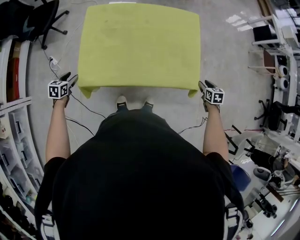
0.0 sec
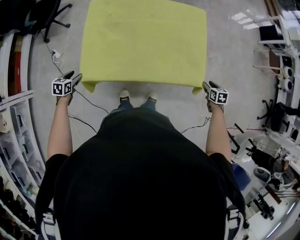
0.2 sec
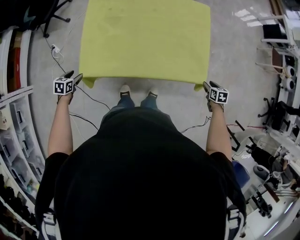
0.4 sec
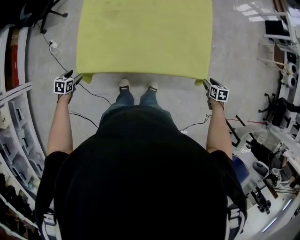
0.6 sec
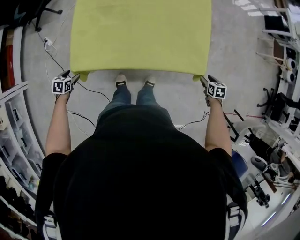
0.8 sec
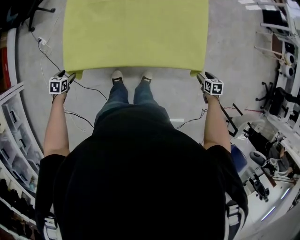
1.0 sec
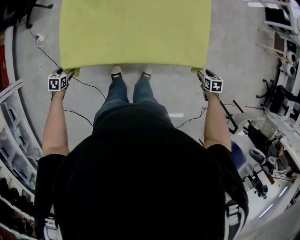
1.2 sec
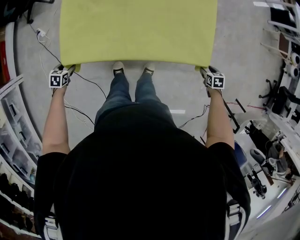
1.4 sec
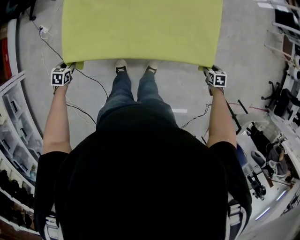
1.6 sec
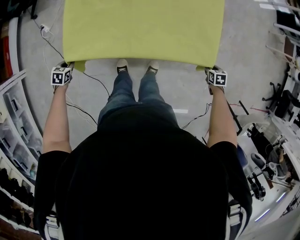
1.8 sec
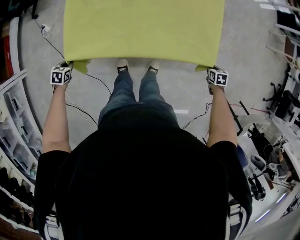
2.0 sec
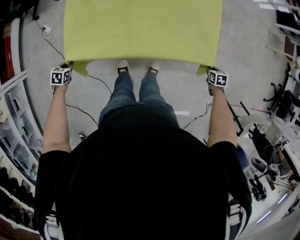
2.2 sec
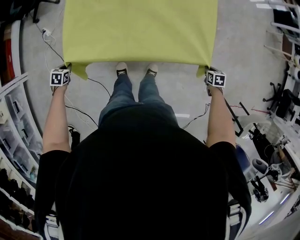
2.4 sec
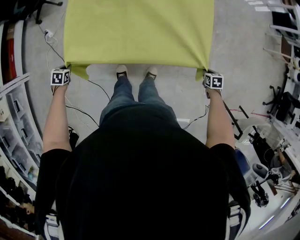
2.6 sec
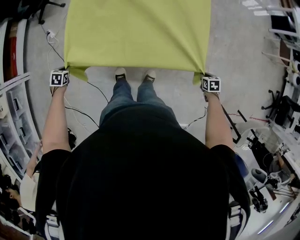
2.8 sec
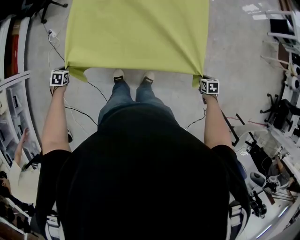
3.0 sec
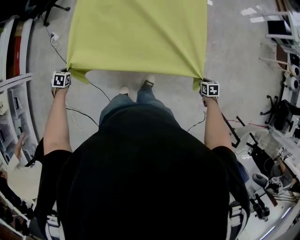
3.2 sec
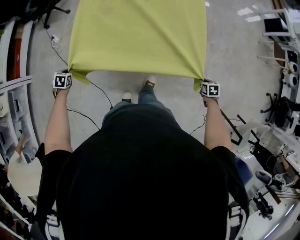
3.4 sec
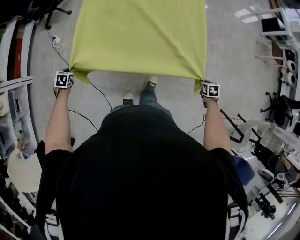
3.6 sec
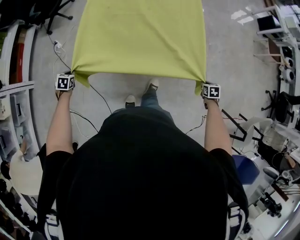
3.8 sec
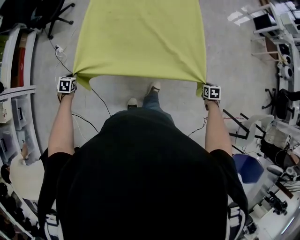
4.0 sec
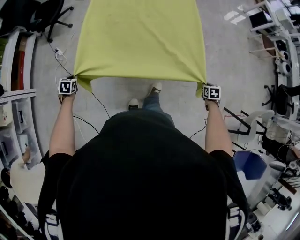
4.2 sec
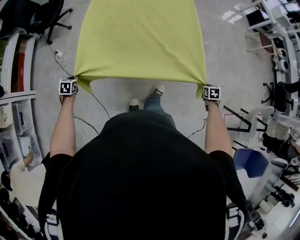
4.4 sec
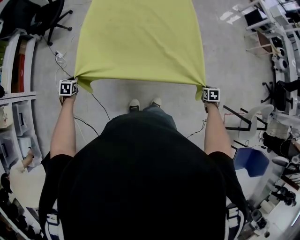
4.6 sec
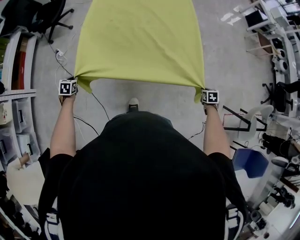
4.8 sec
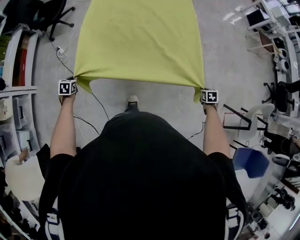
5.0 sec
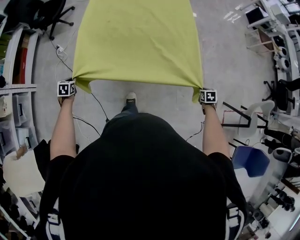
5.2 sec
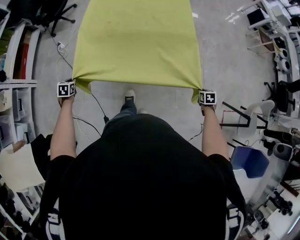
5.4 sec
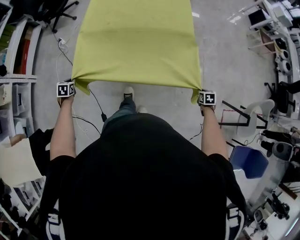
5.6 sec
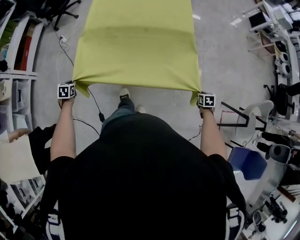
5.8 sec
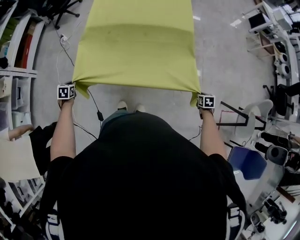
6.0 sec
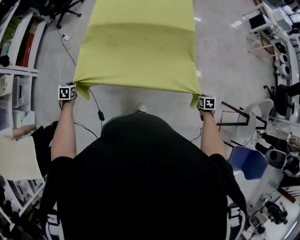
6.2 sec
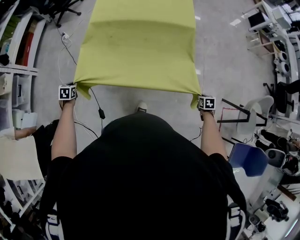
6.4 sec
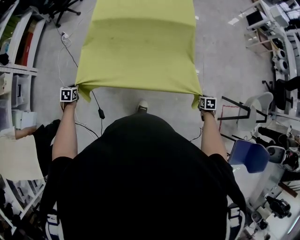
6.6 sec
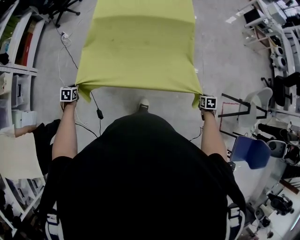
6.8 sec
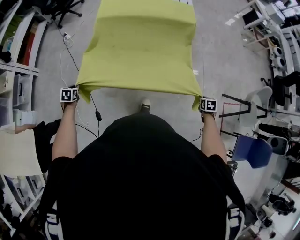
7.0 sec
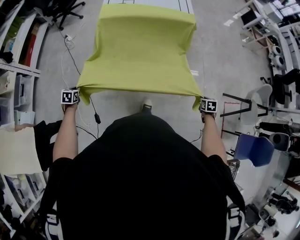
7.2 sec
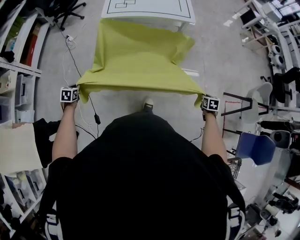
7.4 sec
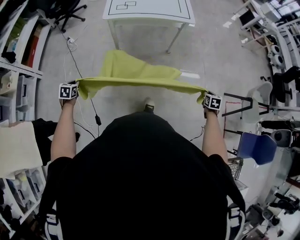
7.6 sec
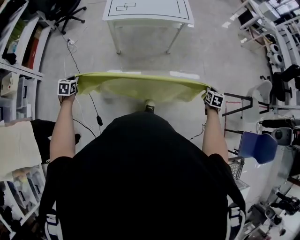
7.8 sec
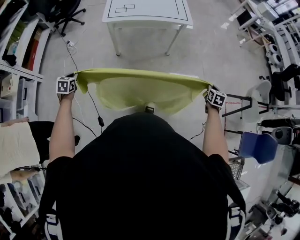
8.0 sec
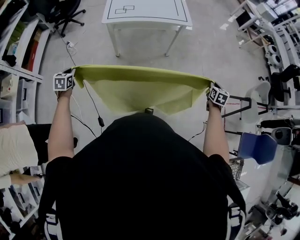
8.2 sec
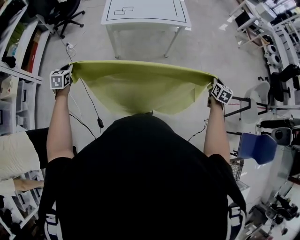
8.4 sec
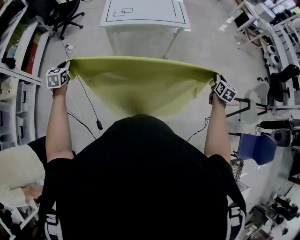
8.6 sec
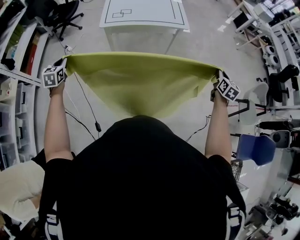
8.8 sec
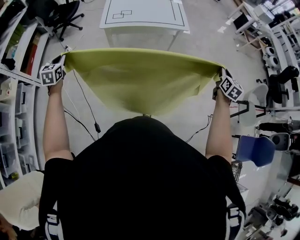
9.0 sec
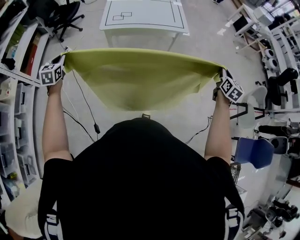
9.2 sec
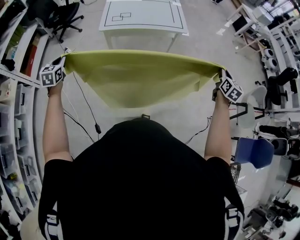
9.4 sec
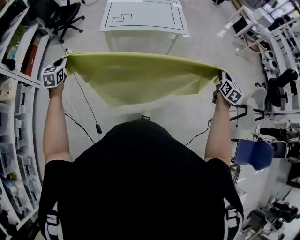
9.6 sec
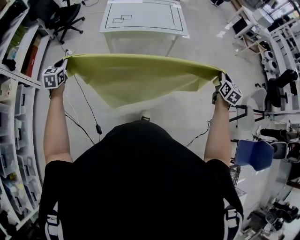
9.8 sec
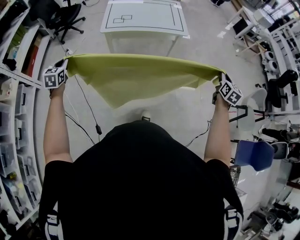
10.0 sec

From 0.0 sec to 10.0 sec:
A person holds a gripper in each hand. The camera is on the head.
From 0.0 sec to 1.4 sec: Both grippers move downward, about 20 cm.
From 1.4 sec to 2.8 sec: The left gripper moves roughly 10 cm, and closes up; the right gripper moves about 5 cm, and closes.
From 2.8 sec to 4.2 sec: The left gripper moves roughly 25 cm, while the right gripper changes place by about 30 cm.
From 4.2 sec to 5.8 sec: Both grippers move backward, some 35 cm.
From 5.8 sec to 7.2 sec: Both grippers travel together backward, about 30 cm.
From 7.2 sec to 8.6 sec: Both grippers travel together upward, roughly 25 cm. The left gripper changes its angle by some 30 degrees, while the right gripper points its fingers some 40 degrees further upward.
From 8.6 sec to 10.0 sec: Both grippers travel together upward, about 5 cm.

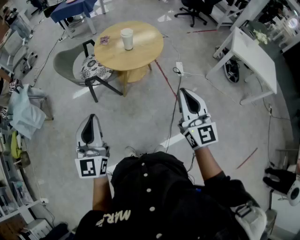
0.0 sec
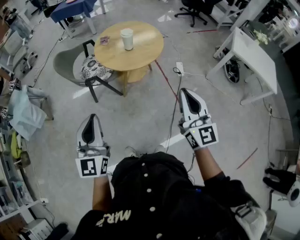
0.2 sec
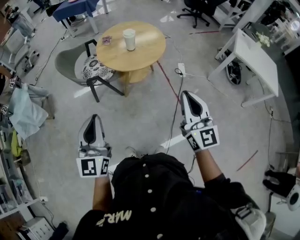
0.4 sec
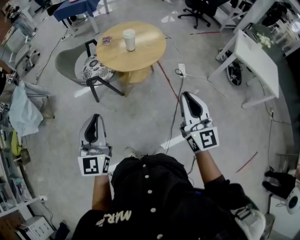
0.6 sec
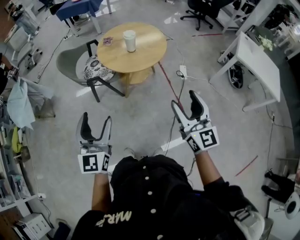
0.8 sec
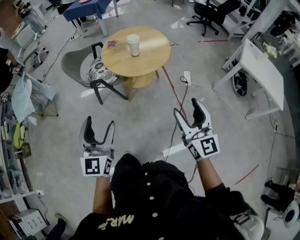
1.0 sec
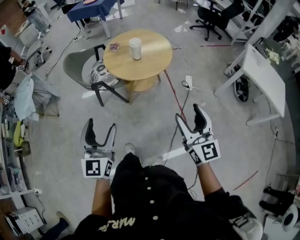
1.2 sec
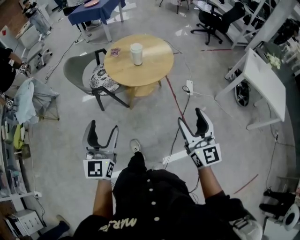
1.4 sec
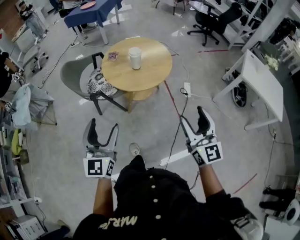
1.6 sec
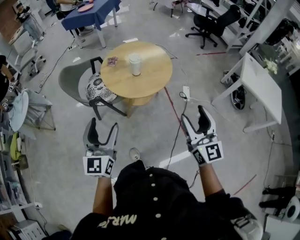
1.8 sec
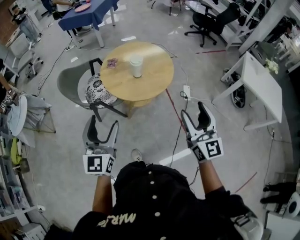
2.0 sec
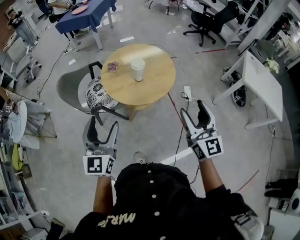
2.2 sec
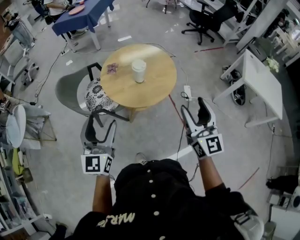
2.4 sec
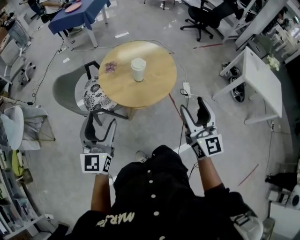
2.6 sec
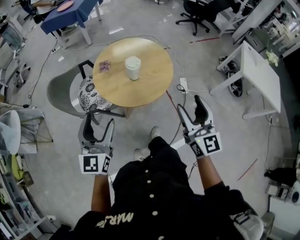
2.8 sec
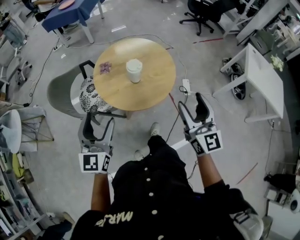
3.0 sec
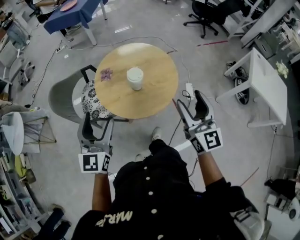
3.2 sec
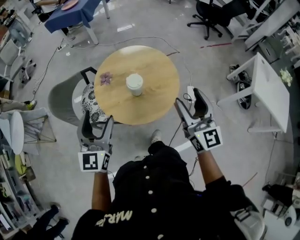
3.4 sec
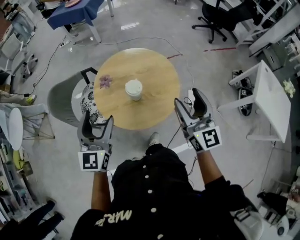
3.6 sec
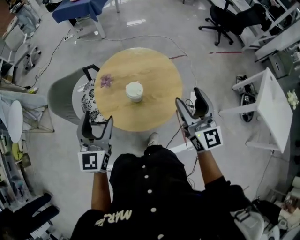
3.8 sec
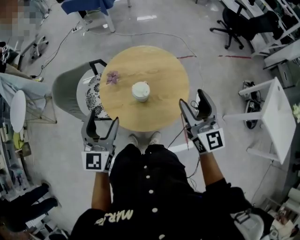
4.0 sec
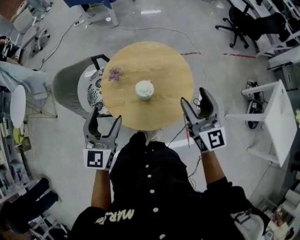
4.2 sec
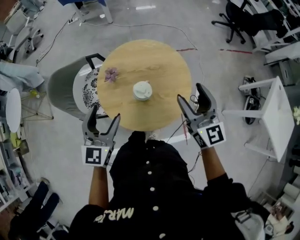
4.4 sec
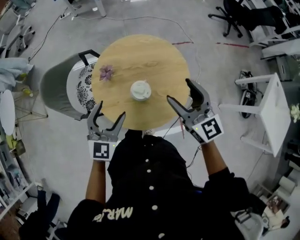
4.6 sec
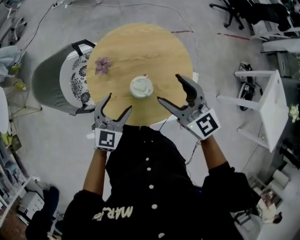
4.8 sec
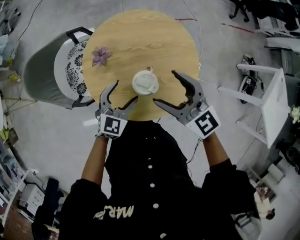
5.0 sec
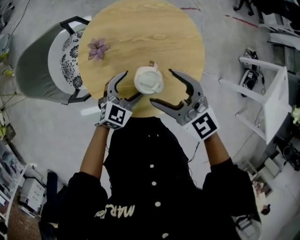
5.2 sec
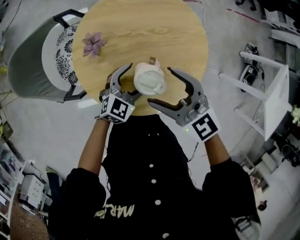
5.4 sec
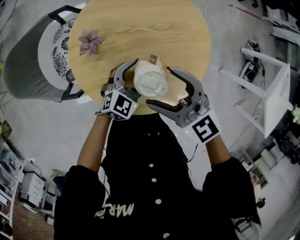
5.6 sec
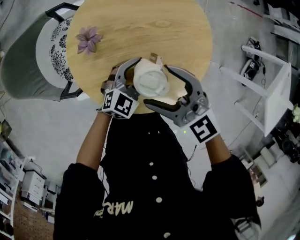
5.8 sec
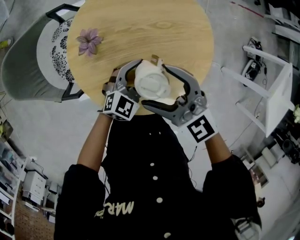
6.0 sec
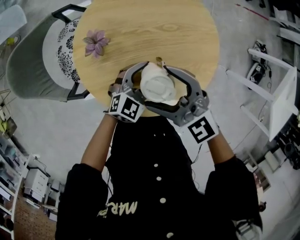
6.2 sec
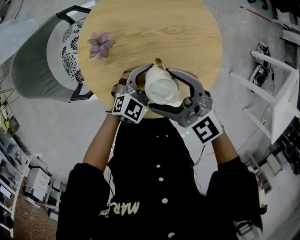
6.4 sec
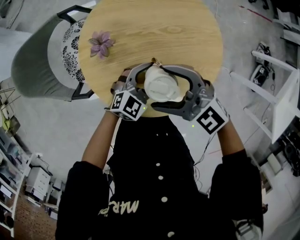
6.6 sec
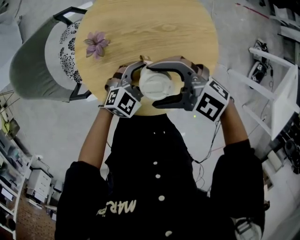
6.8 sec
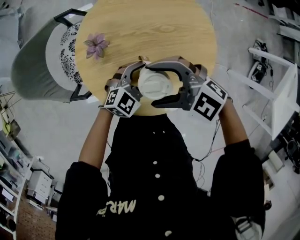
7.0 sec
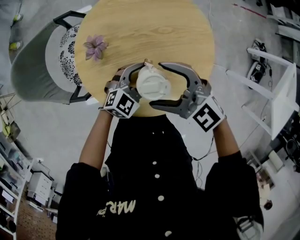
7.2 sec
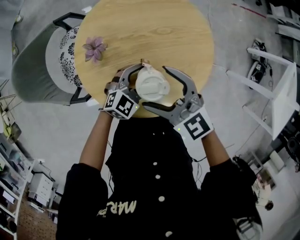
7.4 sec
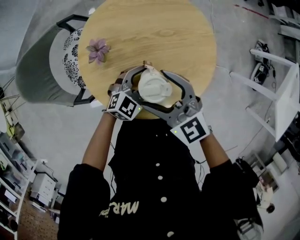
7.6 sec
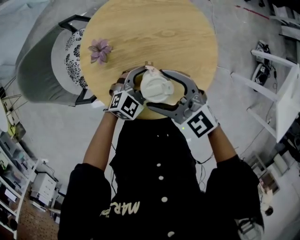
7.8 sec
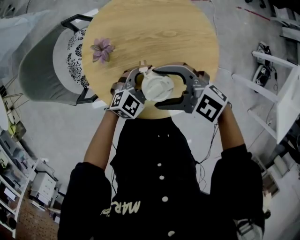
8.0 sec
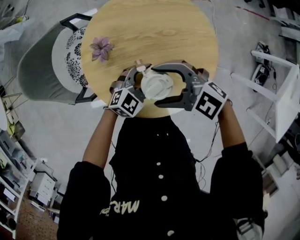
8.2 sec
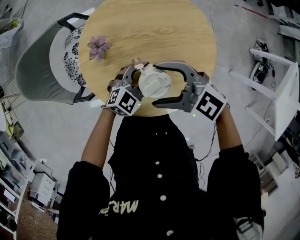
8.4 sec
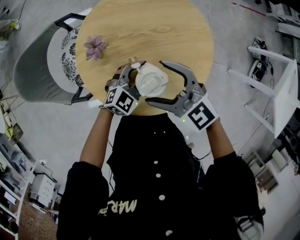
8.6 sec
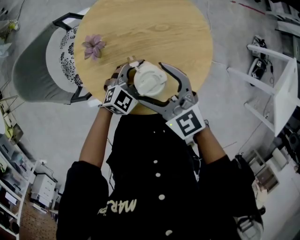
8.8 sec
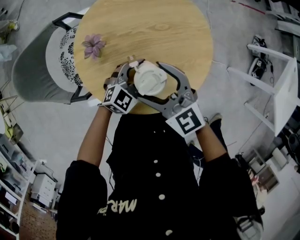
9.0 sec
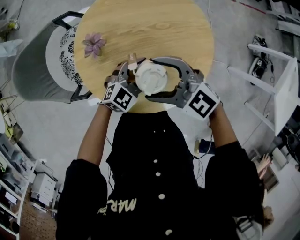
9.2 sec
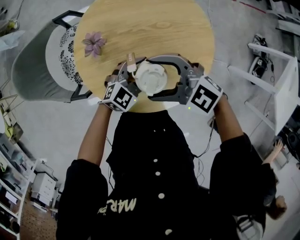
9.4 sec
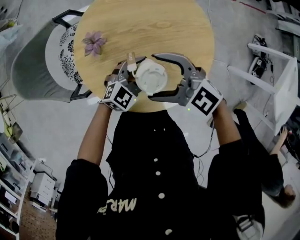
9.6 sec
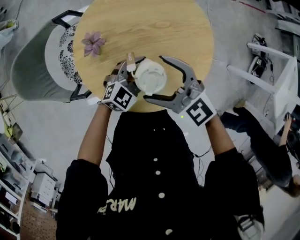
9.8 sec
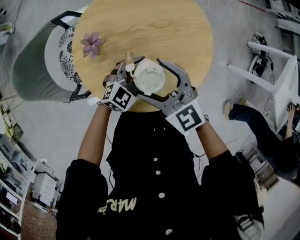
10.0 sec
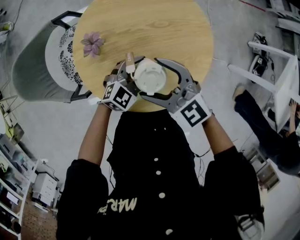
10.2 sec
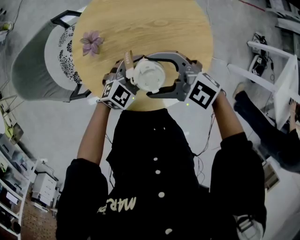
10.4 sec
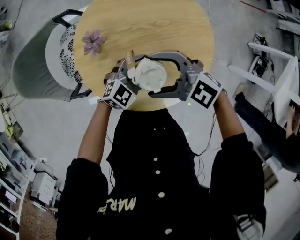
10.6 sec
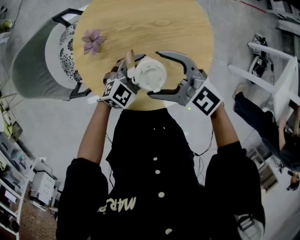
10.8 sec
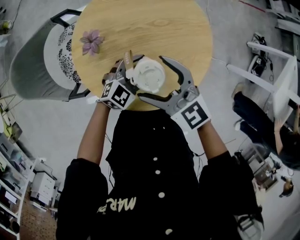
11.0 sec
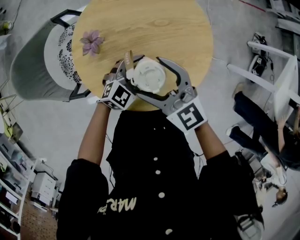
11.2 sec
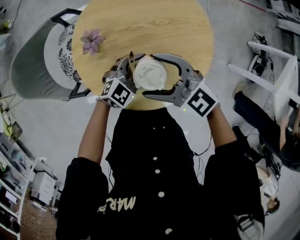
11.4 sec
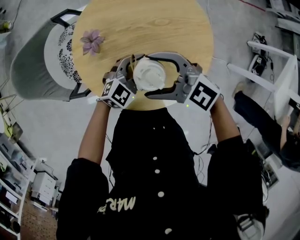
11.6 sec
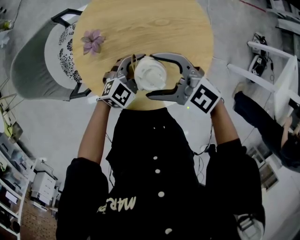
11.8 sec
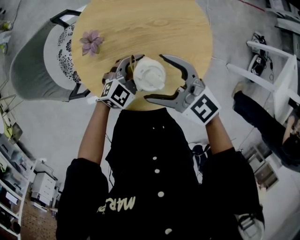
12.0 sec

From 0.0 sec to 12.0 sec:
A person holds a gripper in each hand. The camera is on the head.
From 0.0 sec to 1.6 sec: The grippers both shift forward and to the right by approximately 10 cm. The right gripper opens, while the left gripper opens its fingers.
From 1.6 sec to 3.0 sec: Both grippers move forward, some 25 cm.
From 3.0 sec to 4.4 sec: The grippers both shift forward by approximately 25 cm.
From 4.4 sec to 6.0 sec: The left gripper moves downward and to the right, about 35 cm, and turns by roughly 40 degrees. Meanwhile the right gripper travels downward and to the left by roughly 25 cm, and rotates about 40 degrees.
From 9.0 sec to 10.4 sec: The right gripper swivels roughly 30 degrees.
From 10.4 sec to 12.0 sec: The right gripper rotates about 20 degrees.

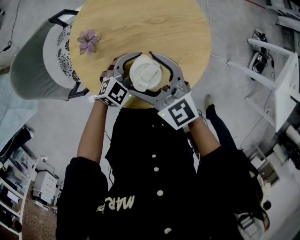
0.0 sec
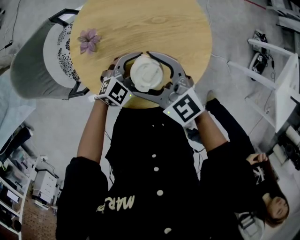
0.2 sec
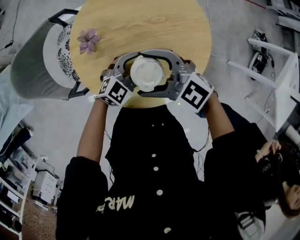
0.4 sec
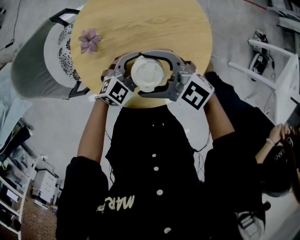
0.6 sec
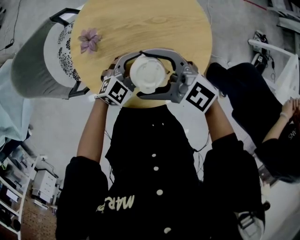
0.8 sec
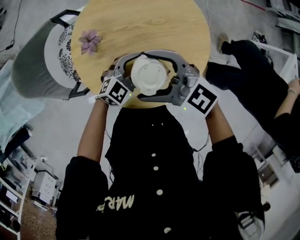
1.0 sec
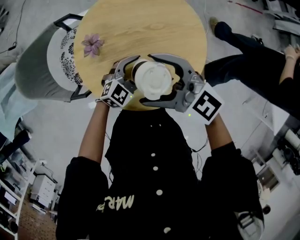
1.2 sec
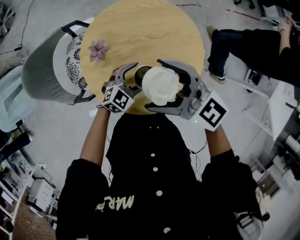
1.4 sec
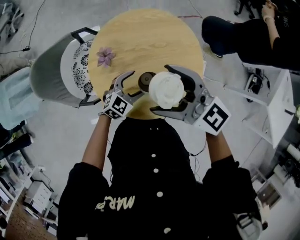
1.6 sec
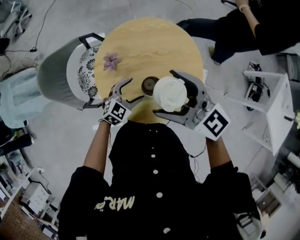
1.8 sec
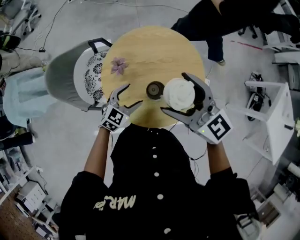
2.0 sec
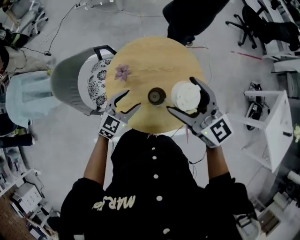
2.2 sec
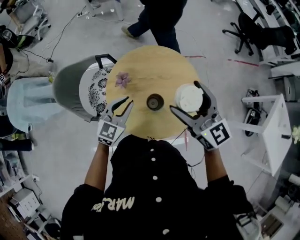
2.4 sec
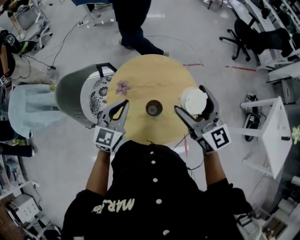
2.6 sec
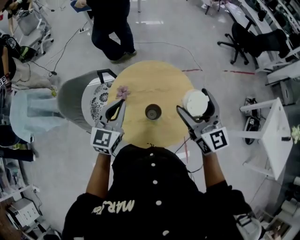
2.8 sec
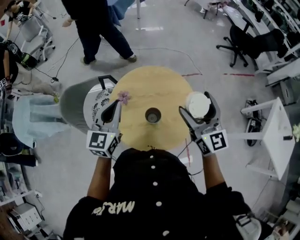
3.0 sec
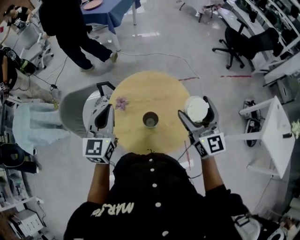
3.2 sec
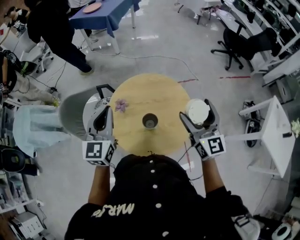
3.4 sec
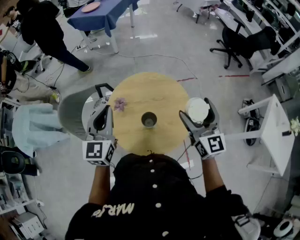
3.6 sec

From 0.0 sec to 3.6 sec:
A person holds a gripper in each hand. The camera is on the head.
From 0.0 sec to 1.8 sec: The right gripper moves upward, some 15 cm. Meanwhile the left gripper ends up roughly 10 cm from where it was.
From 1.8 sec to 3.6 sec: The left gripper heads upward, covering roughly 35 cm, turns by roughly 50 degrees, and closes up. The right gripper is displaced to the right and upward by approximately 20 cm, and rotates roughly 40 degrees.
